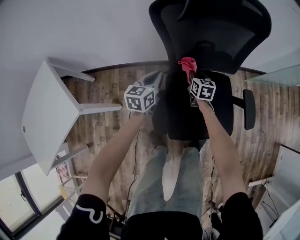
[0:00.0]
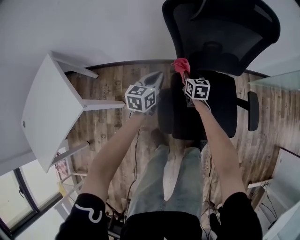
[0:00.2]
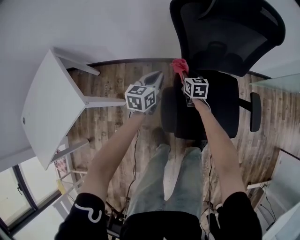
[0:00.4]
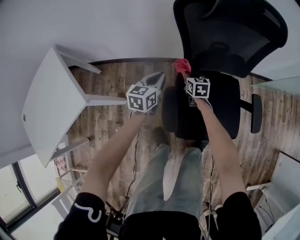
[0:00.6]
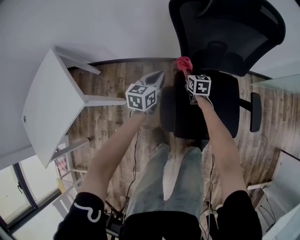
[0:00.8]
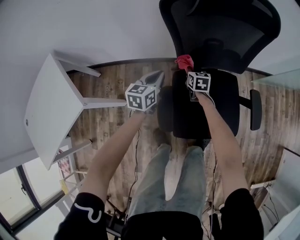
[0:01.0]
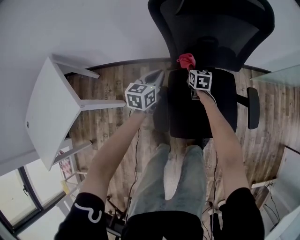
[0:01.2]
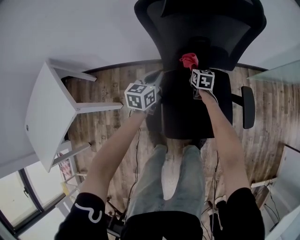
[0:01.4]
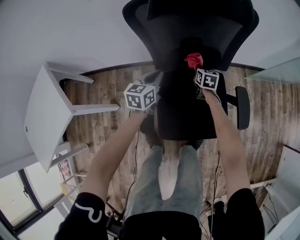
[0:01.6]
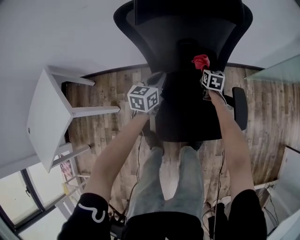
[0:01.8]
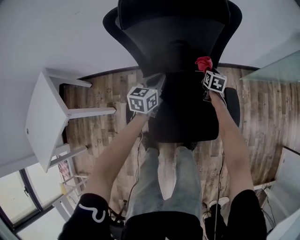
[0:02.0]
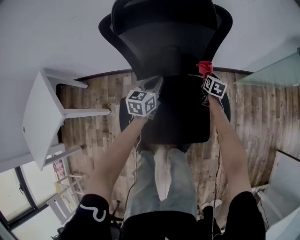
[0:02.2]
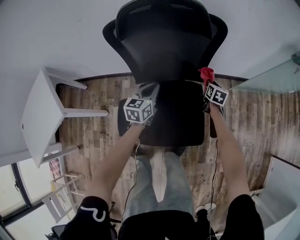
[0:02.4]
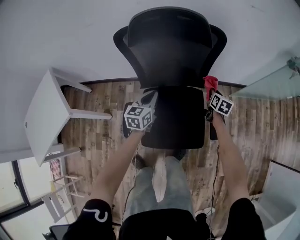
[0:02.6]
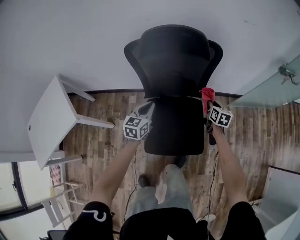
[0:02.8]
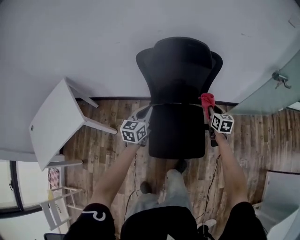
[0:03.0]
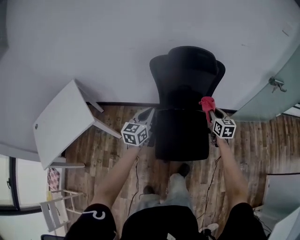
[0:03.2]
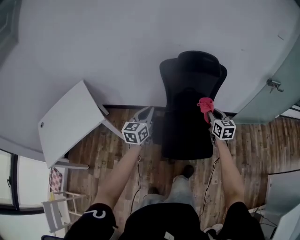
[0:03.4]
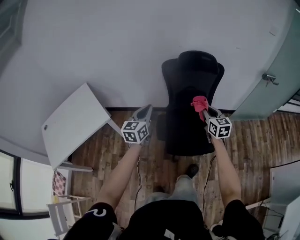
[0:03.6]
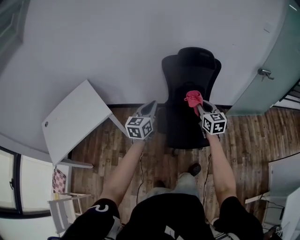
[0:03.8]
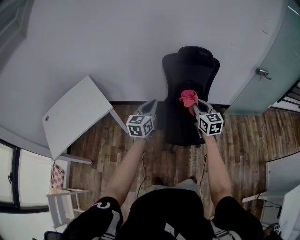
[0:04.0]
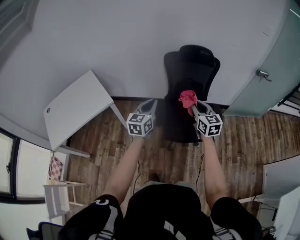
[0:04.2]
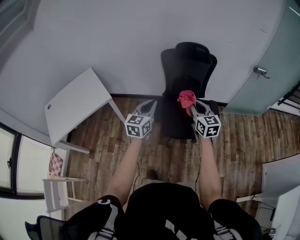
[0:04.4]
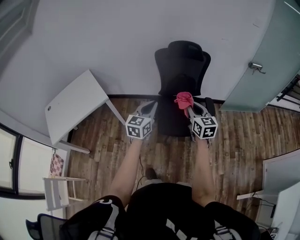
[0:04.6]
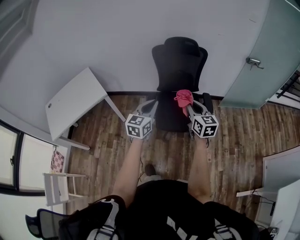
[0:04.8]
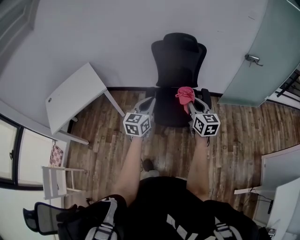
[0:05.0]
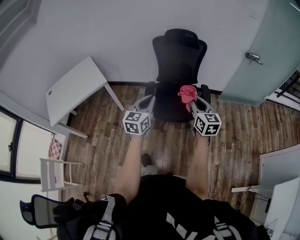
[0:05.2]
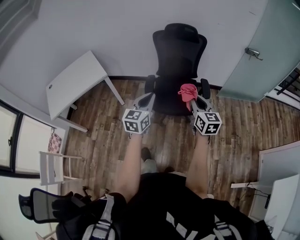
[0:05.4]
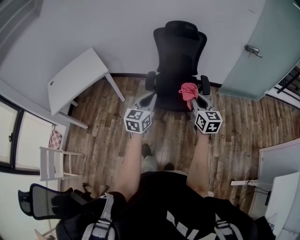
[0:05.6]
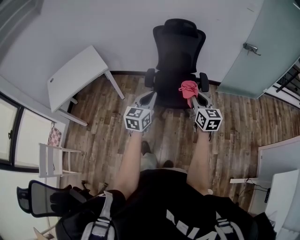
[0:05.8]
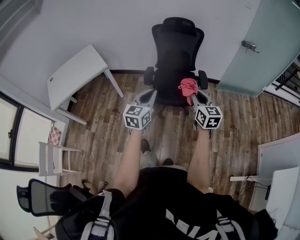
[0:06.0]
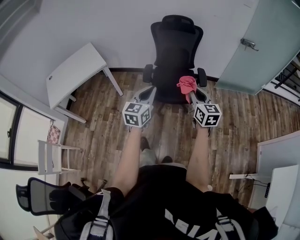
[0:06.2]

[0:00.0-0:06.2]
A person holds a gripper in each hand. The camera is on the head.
0:00.0 to 0:01.6: The right gripper goes about 10 cm to the right and forward. The left gripper travels to the right by approximately 10 cm.
0:01.6 to 0:03.2: The two grippers go about 35 cm upward and backward. The right gripper changes its angle by about 20 degrees.
0:03.2 to 0:04.6: The two grippers go some 35 cm backward and upward.
0:04.6 to 0:06.2: The right gripper moves backward and to the right, roughly 25 cm; the left gripper is displaced backward by some 20 cm.

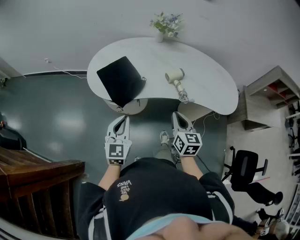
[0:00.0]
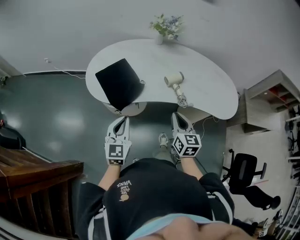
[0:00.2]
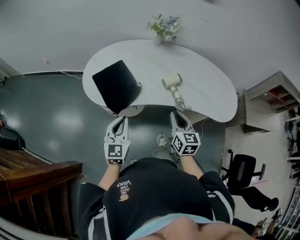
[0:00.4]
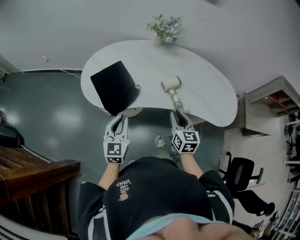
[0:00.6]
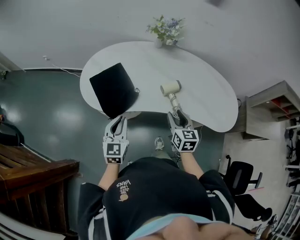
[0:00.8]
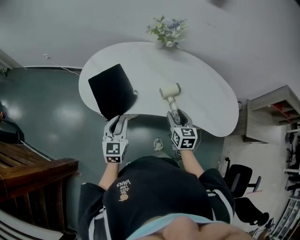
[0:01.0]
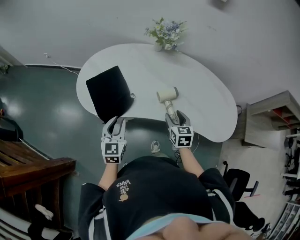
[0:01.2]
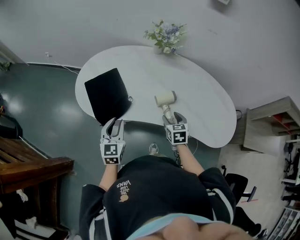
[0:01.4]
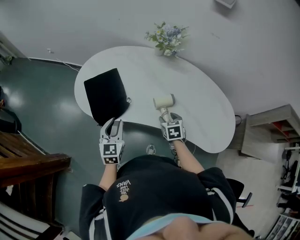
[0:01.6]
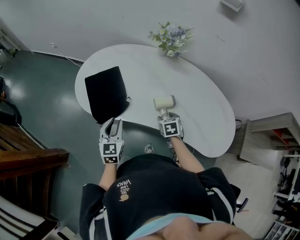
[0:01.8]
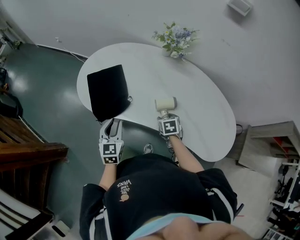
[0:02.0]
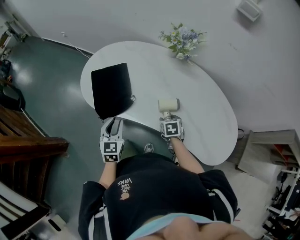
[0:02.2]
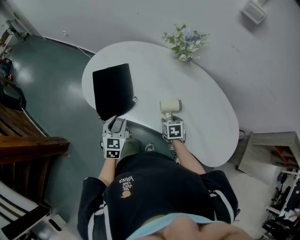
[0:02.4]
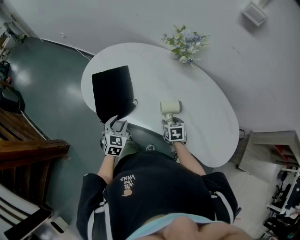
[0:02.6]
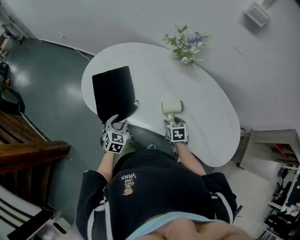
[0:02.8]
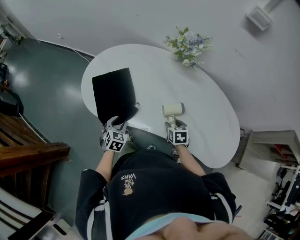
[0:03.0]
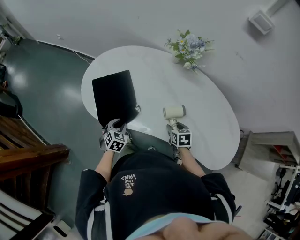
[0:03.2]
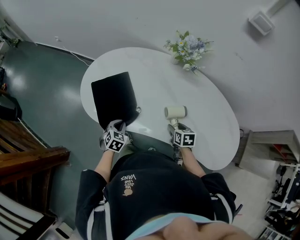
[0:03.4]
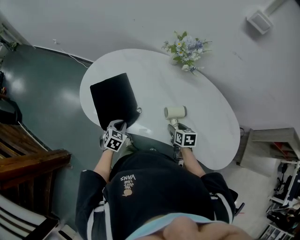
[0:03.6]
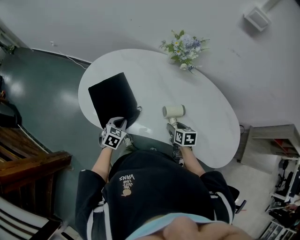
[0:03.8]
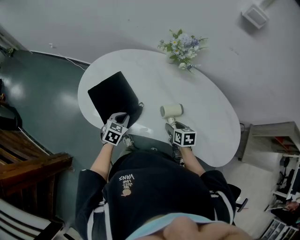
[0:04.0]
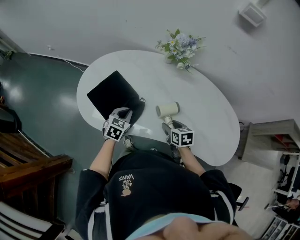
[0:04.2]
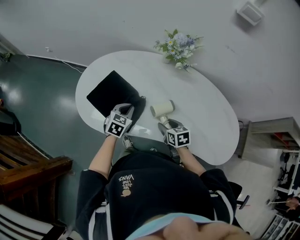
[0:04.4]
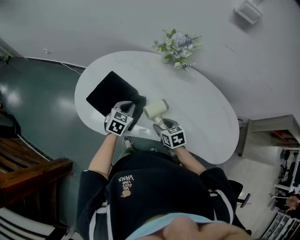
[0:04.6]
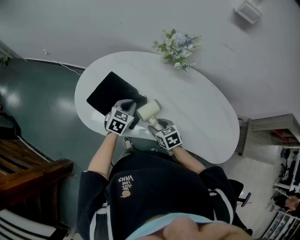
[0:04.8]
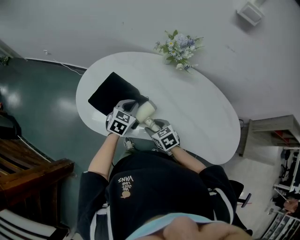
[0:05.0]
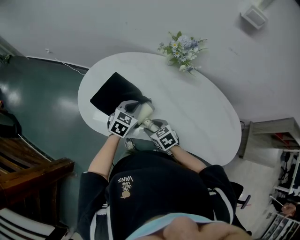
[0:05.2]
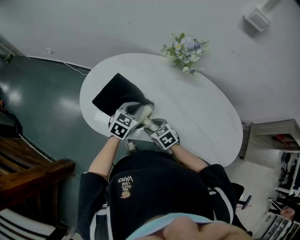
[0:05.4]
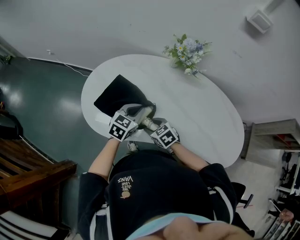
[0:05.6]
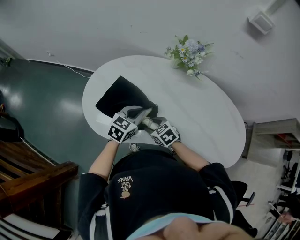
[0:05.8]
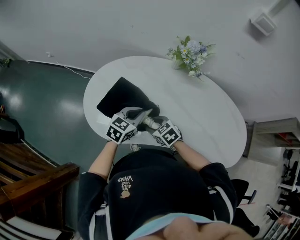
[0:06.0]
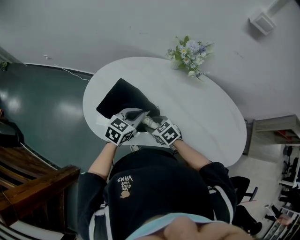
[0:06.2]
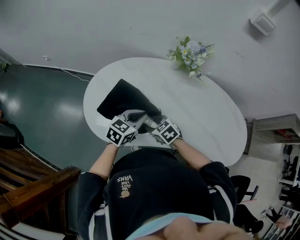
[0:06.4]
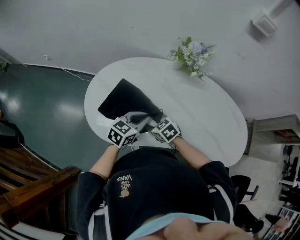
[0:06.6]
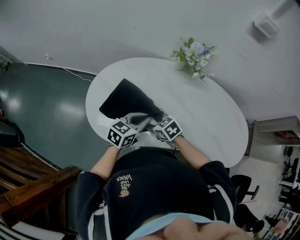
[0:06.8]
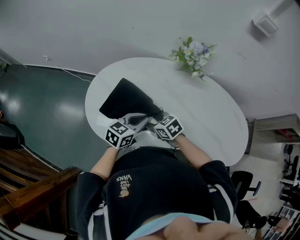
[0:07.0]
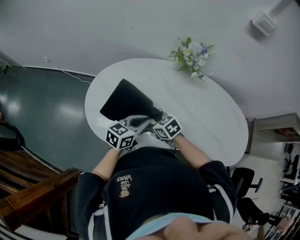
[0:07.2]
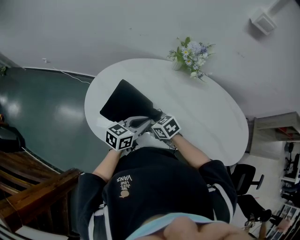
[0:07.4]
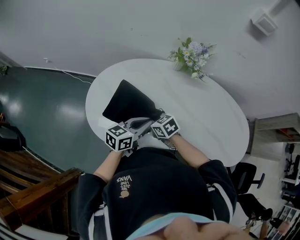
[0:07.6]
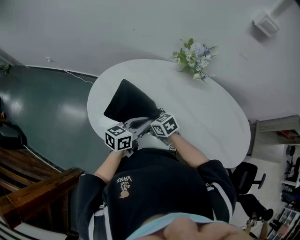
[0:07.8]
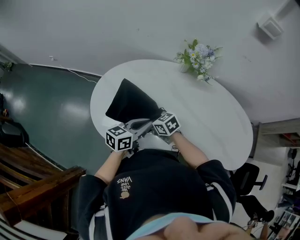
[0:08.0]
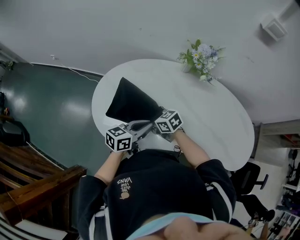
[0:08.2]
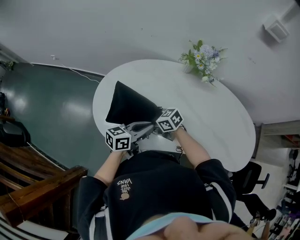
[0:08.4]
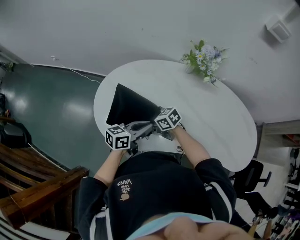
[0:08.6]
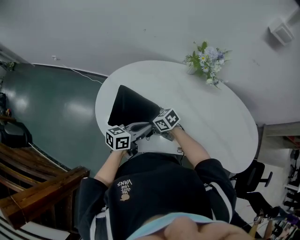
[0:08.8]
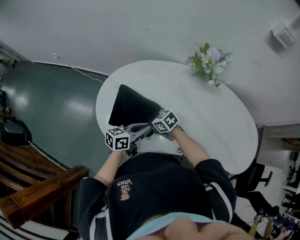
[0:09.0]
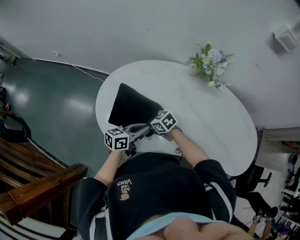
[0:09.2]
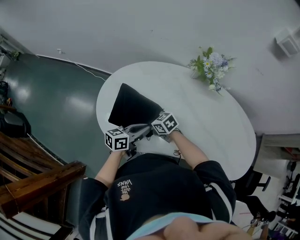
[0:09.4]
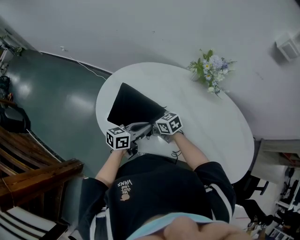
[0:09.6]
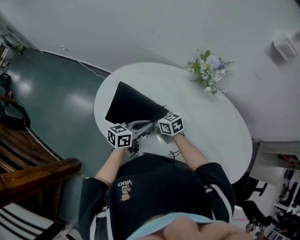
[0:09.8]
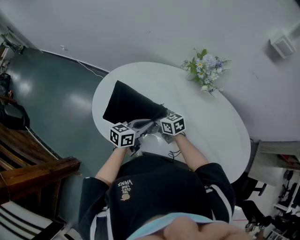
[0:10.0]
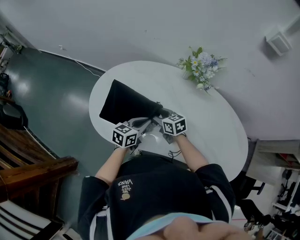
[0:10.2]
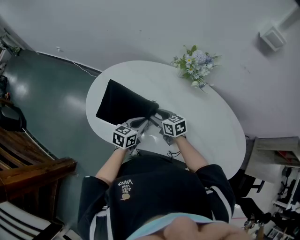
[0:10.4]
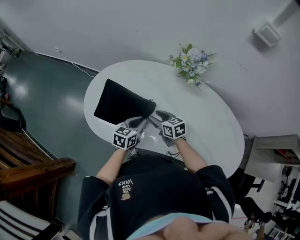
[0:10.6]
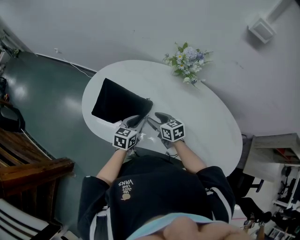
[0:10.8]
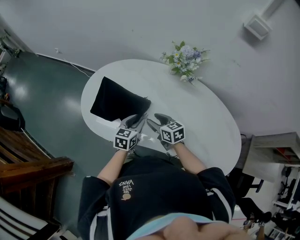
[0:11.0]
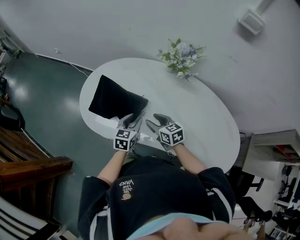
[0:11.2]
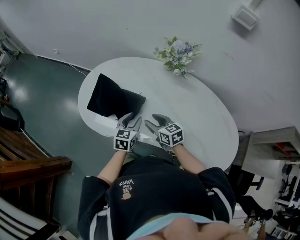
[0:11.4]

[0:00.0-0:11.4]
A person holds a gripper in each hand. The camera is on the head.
0:00.0 to 0:01.4: The left gripper travels forward and to the right by approximately 20 cm. Meanwhile the right gripper shifts roughly 25 cm forward, downward and to the right, turns by approximately 30 degrees, and opens.
0:01.4 to 0:02.8: Both grippers move downward and forward, about 10 cm. The left gripper turns by about 20 degrees.
0:02.8 to 0:04.2: The left gripper heads forward, covering approximately 10 cm, and closes its fingers; the right gripper changes place by some 5 cm.
0:04.2 to 0:05.6: The left gripper is displaced upward by about 5 cm. The right gripper is displaced to the left by some 15 cm, and changes its angle by roughly 30 degrees.
0:05.6 to 0:07.2: The right gripper travels forward and to the left by about 10 cm, while the left gripper turns by about 20 degrees.
0:07.2 to 0:08.6: The right gripper changes place by about 10 cm, and changes its angle by approximately 20 degrees.
0:08.6 to 0:10.0: The right gripper shifts by approximately 10 cm.
0:10.0 to 0:11.4: The right gripper moves backward and to the right, some 15 cm, while the left gripper moves backward, some 5 cm, turns by some 40 degrees, and opens its fingers.

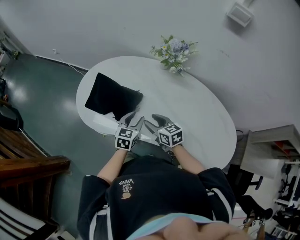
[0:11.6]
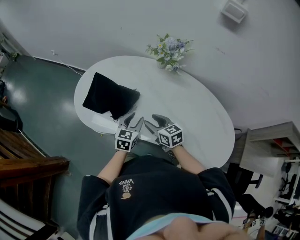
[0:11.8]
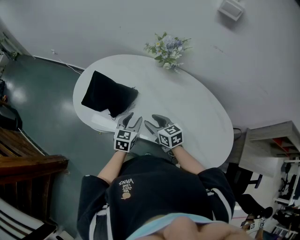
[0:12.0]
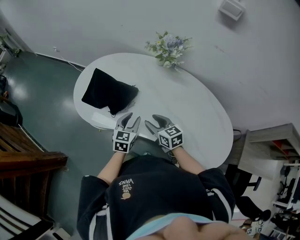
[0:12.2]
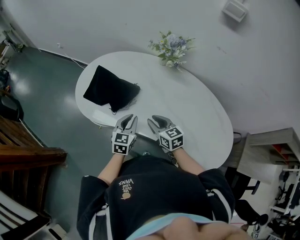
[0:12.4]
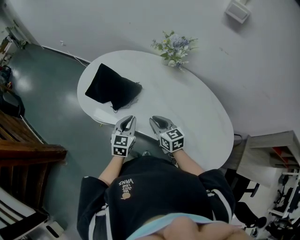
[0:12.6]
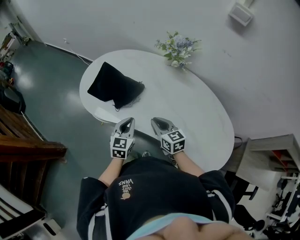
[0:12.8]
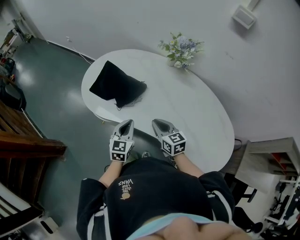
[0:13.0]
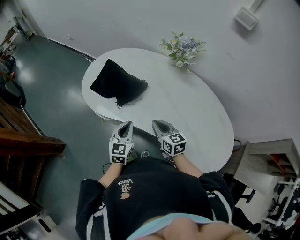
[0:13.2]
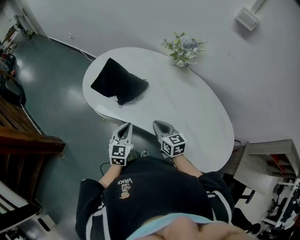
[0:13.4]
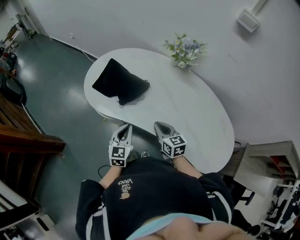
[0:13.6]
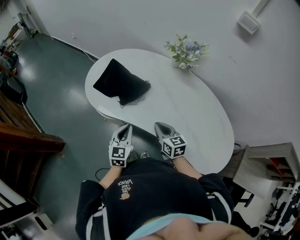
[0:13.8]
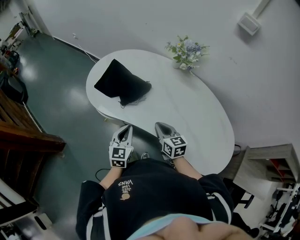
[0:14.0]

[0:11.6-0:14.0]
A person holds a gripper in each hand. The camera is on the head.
0:11.6 to 0:12.8: The two grippers go some 10 cm backward. The left gripper closes its fingers; the right gripper closes up.
0:12.8 to 0:14.0: The left gripper goes some 5 cm backward.

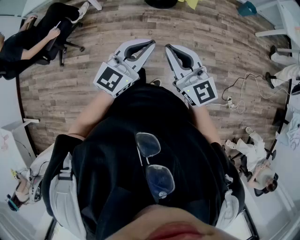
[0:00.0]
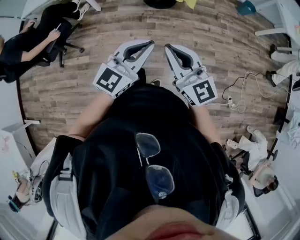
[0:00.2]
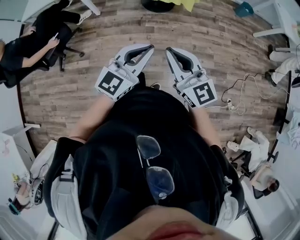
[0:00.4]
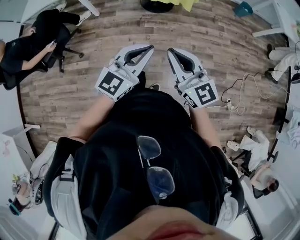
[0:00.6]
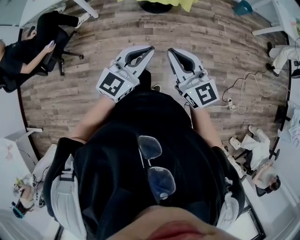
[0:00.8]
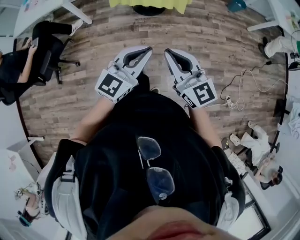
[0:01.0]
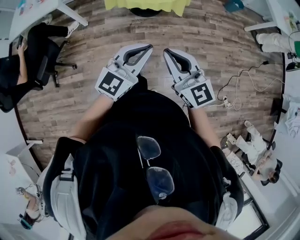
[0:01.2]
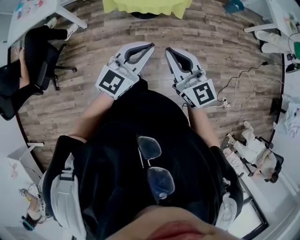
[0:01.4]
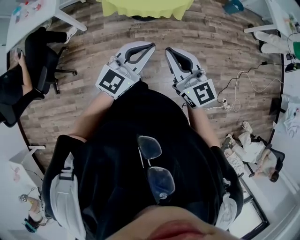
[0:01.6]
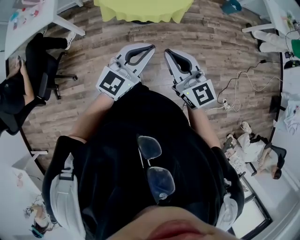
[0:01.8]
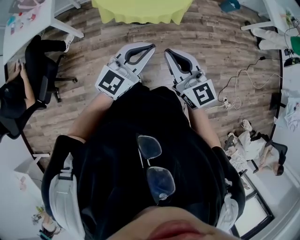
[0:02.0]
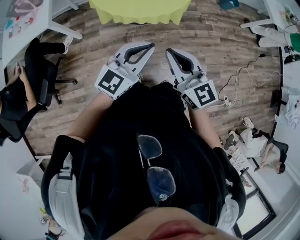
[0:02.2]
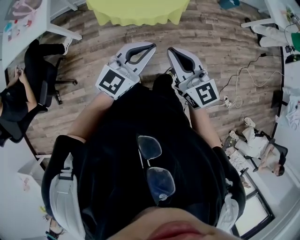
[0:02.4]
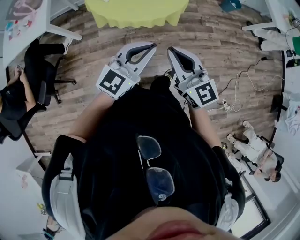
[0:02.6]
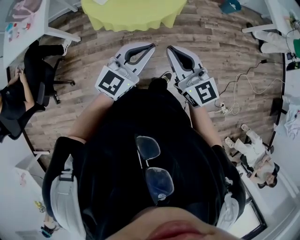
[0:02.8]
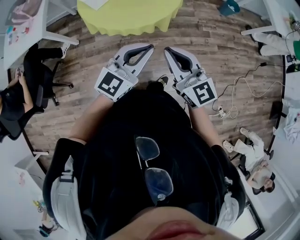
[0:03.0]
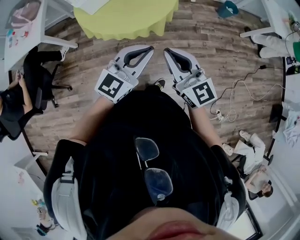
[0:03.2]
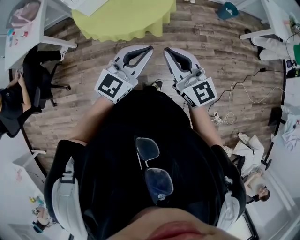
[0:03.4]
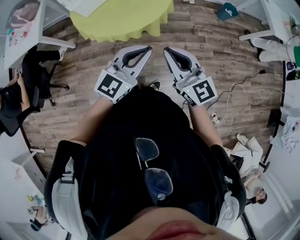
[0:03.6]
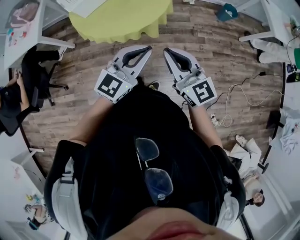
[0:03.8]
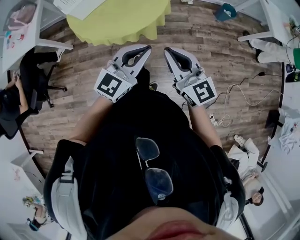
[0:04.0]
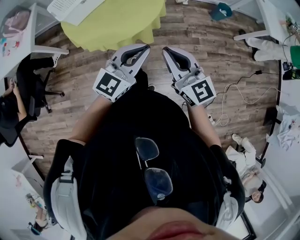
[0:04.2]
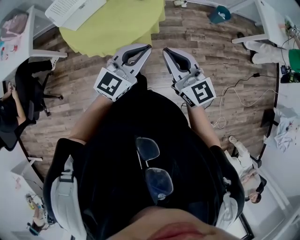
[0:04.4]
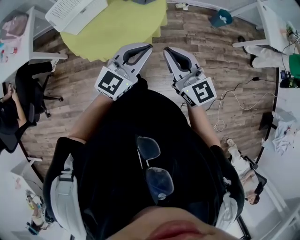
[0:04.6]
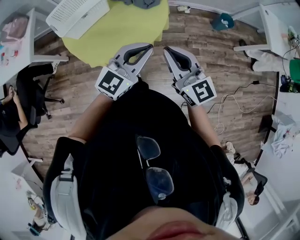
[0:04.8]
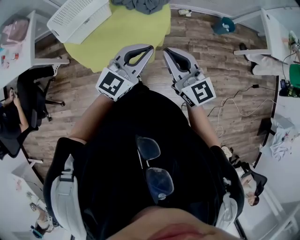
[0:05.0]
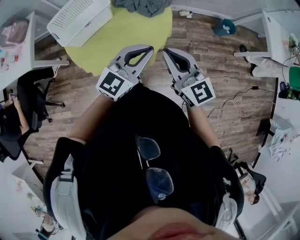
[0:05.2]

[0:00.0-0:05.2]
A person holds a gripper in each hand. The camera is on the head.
0:00.0 to 0:01.8: The two grippers go approximately 25 cm forward.
0:01.8 to 0:03.4: The two grippers go about 25 cm to the right and forward.
0:03.4 to 0:05.2: Both grippers travel together forward, some 25 cm.
